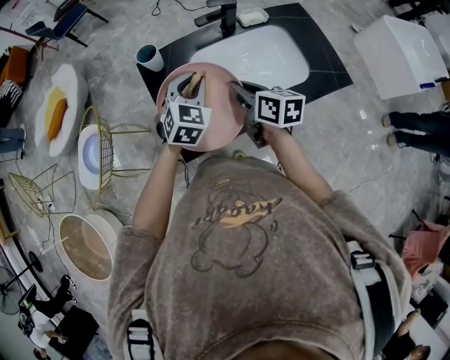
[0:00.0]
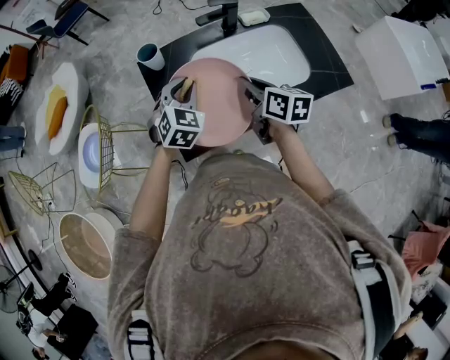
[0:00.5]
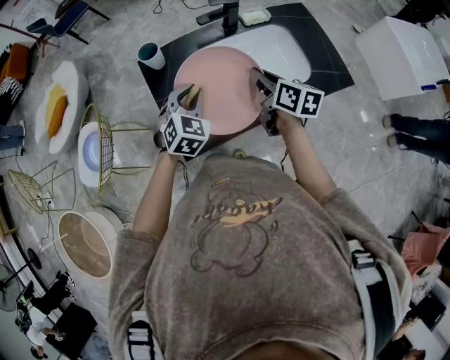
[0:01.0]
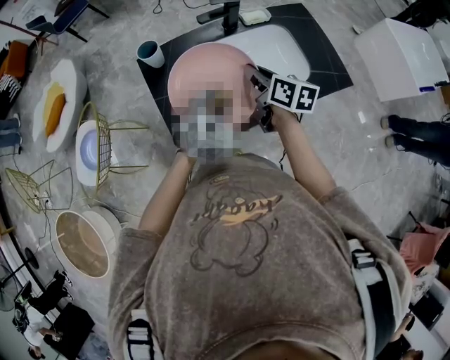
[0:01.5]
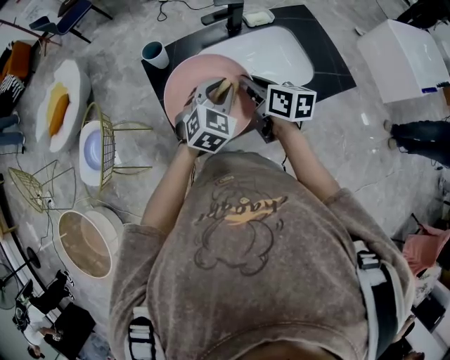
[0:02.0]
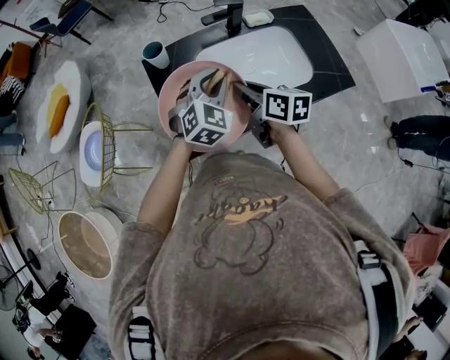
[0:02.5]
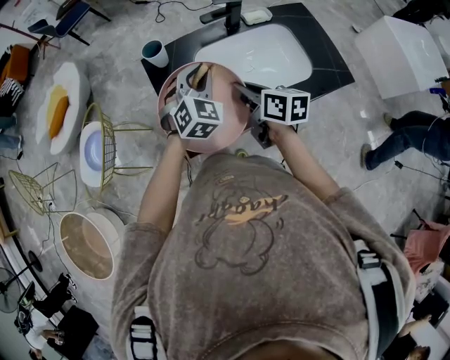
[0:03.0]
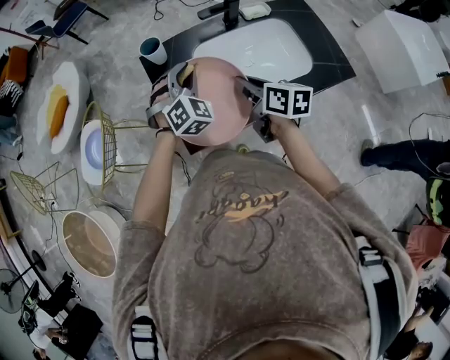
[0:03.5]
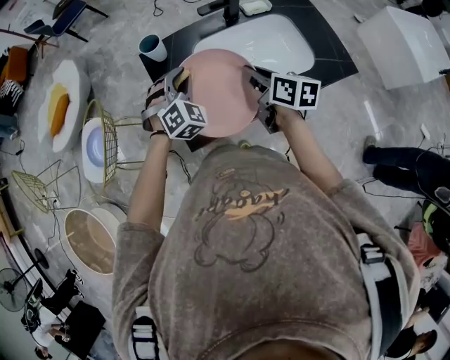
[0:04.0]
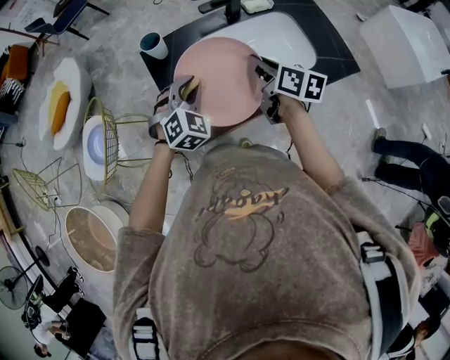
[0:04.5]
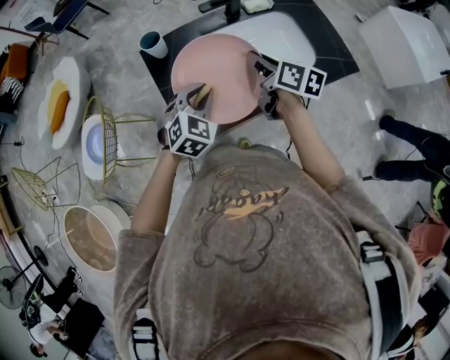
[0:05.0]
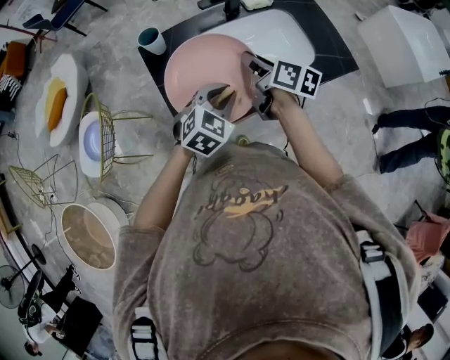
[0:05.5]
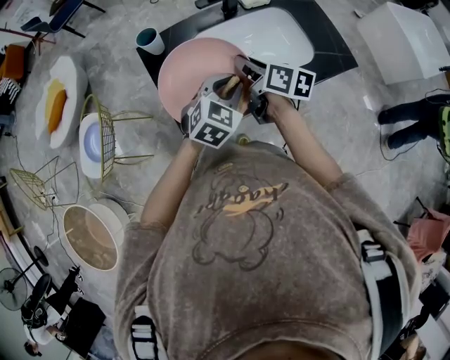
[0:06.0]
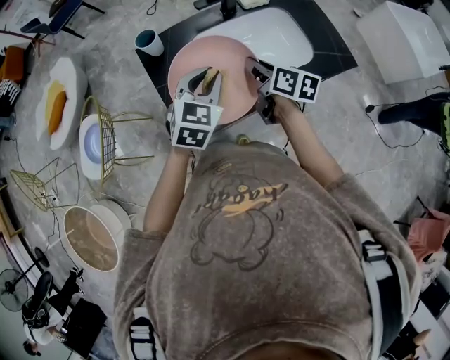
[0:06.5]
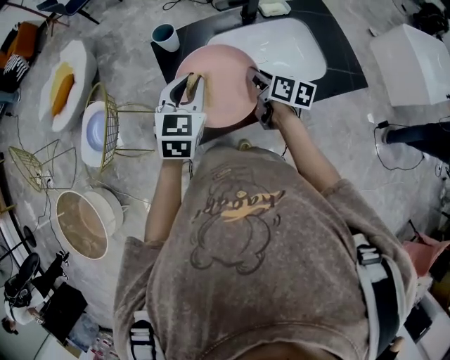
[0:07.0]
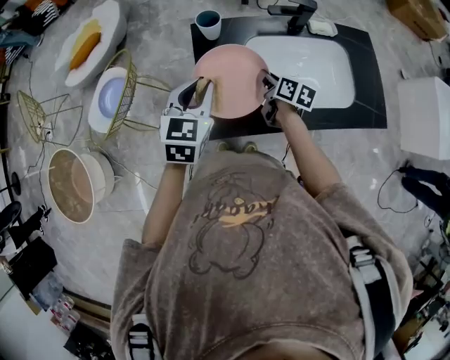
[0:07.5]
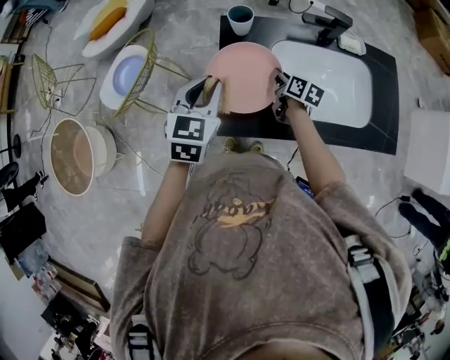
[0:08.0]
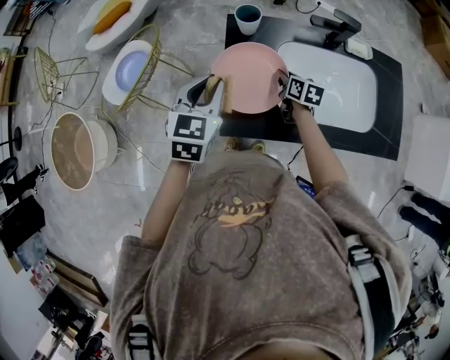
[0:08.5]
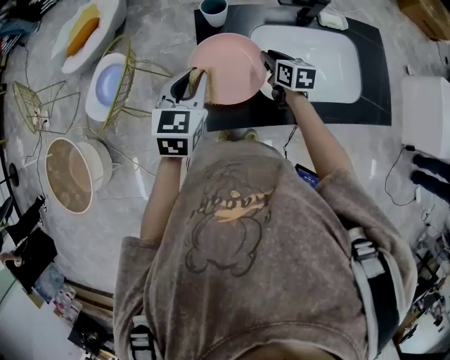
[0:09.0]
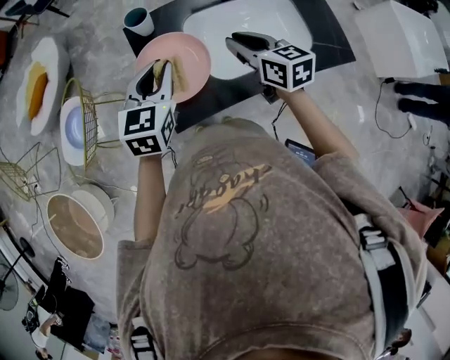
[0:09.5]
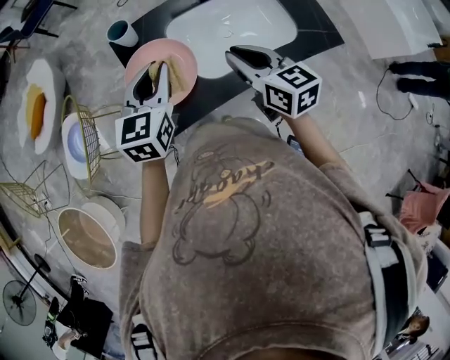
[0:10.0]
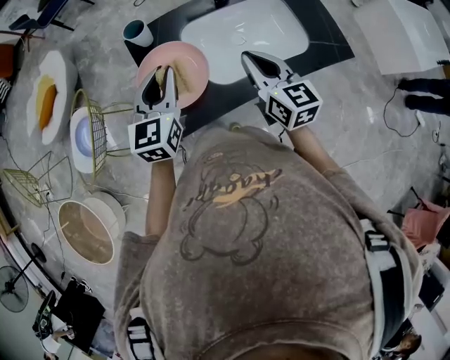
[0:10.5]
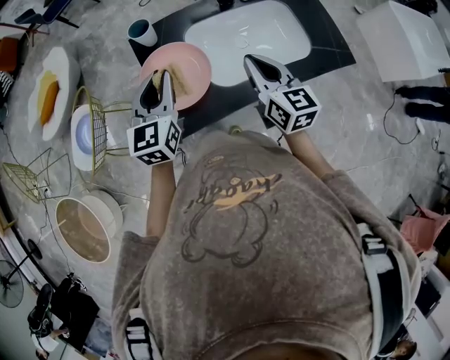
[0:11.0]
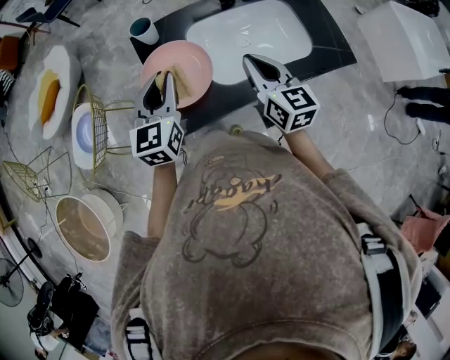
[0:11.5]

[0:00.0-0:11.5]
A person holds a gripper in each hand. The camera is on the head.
0:00.0 to 0:02.0: The left gripper goes about 5 cm to the right.
0:02.0 to 0:04.0: The left gripper goes roughly 10 cm to the left and forward, and changes its angle by some 30 degrees.
0:04.0 to 0:06.0: The left gripper is displaced to the right and backward by approximately 15 cm, and turns by approximately 40 degrees.
0:06.0 to 0:07.5: The left gripper is displaced to the left by approximately 20 cm, and changes its angle by about 40 degrees, while the right gripper heads downward, forward and to the left, covering about 15 cm.
0:07.5 to 0:09.5: The right gripper moves upward, about 15 cm, and rotates some 30 degrees.
0:09.5 to 0:11.5: The right gripper goes approximately 5 cm backward.

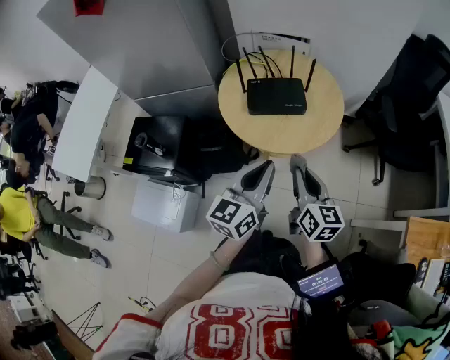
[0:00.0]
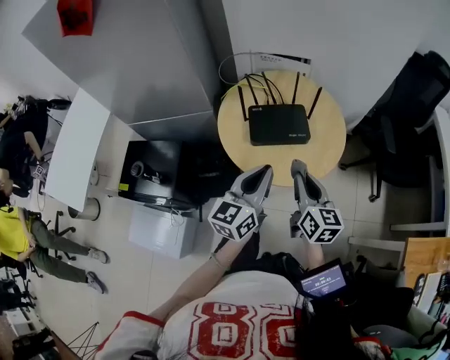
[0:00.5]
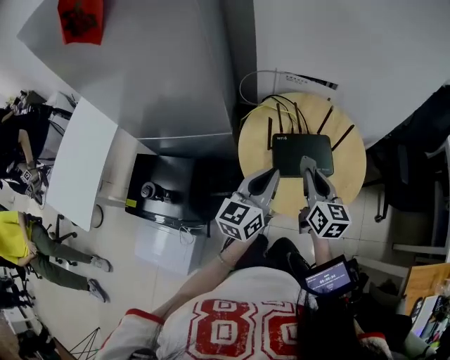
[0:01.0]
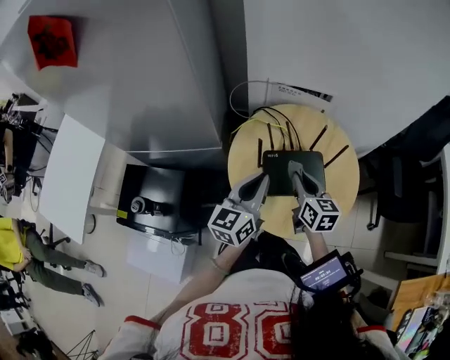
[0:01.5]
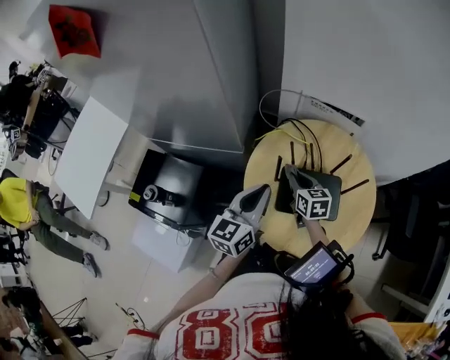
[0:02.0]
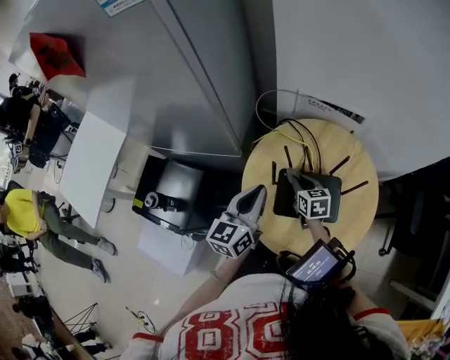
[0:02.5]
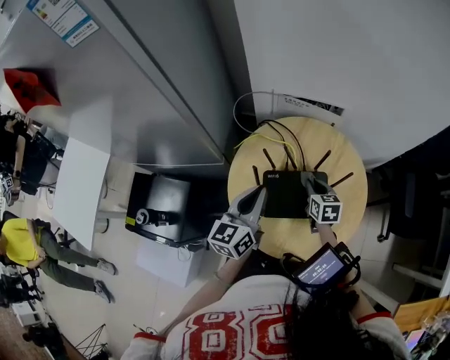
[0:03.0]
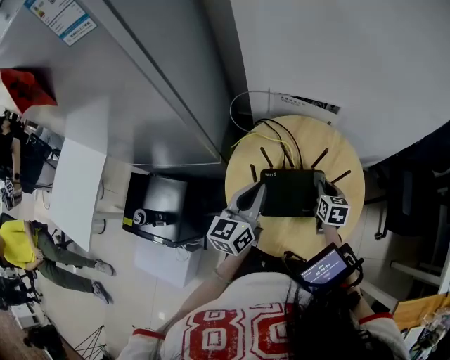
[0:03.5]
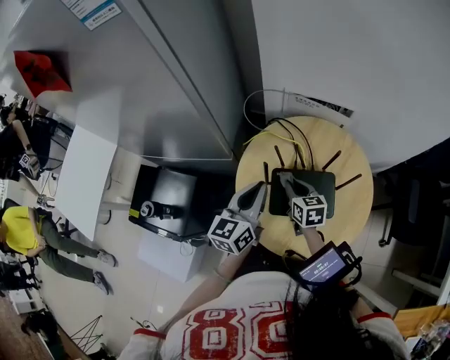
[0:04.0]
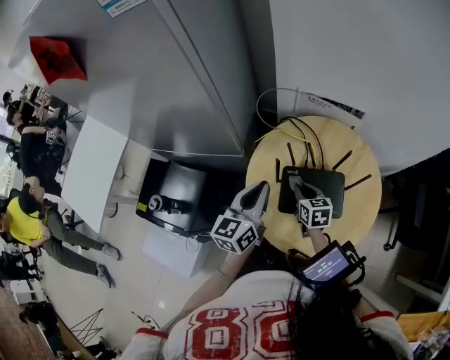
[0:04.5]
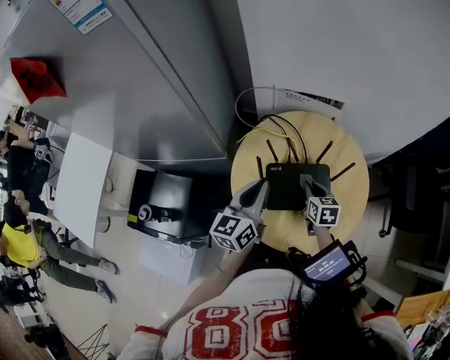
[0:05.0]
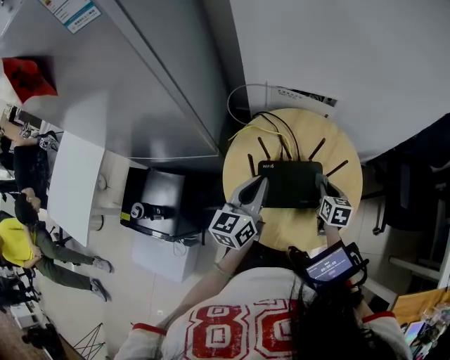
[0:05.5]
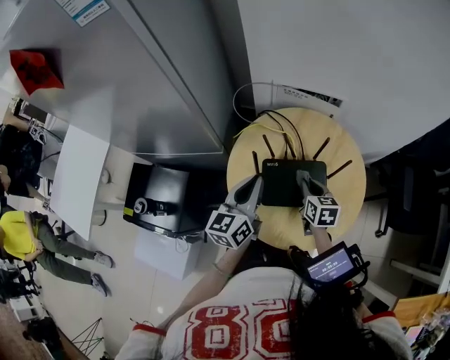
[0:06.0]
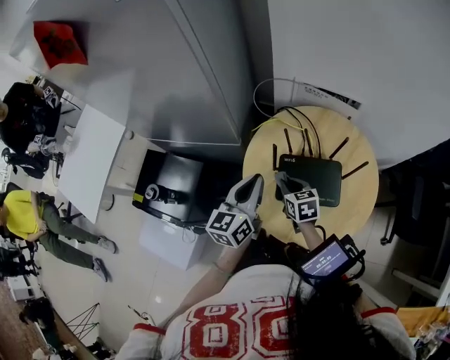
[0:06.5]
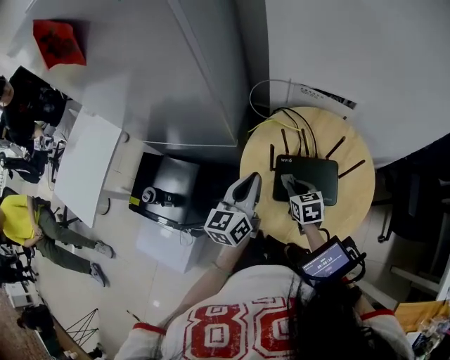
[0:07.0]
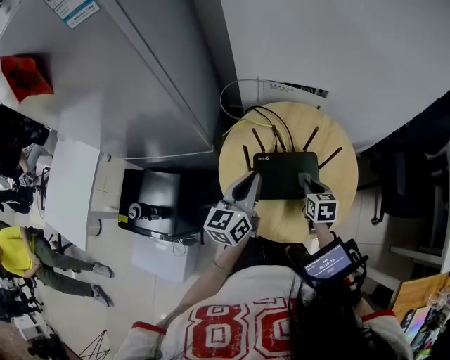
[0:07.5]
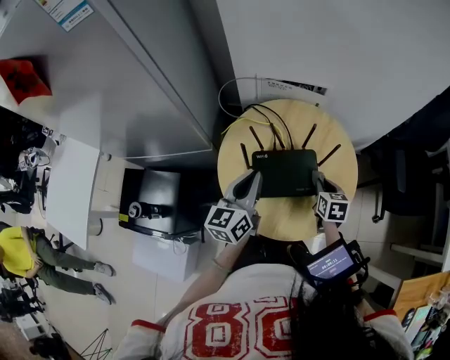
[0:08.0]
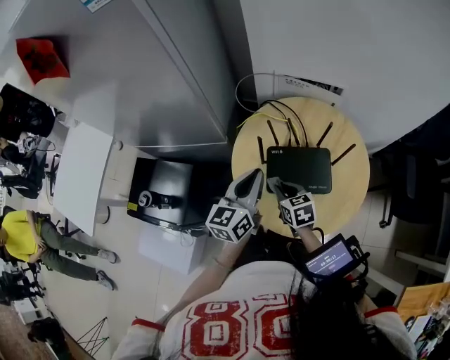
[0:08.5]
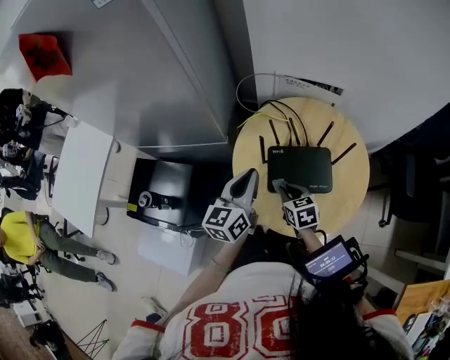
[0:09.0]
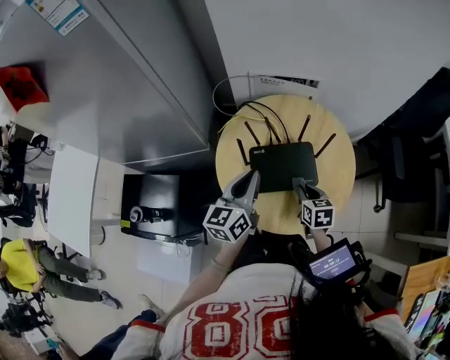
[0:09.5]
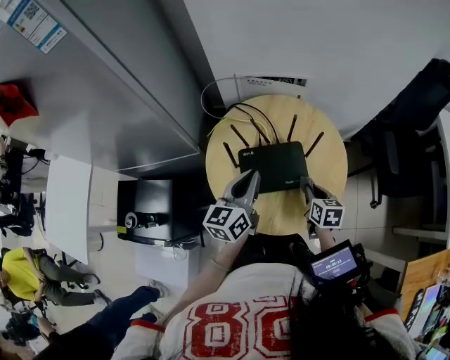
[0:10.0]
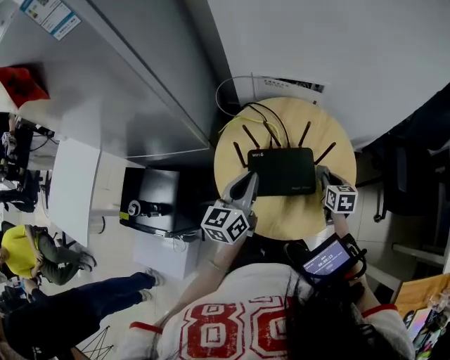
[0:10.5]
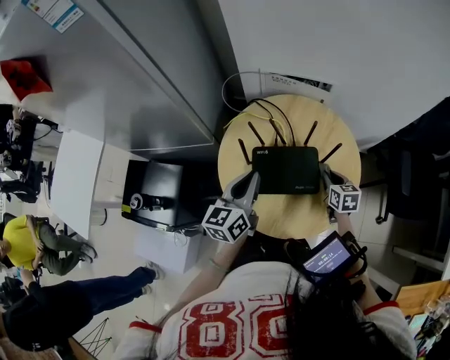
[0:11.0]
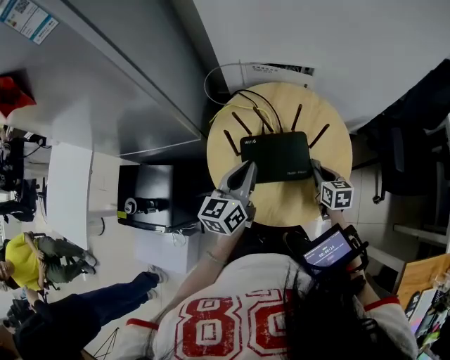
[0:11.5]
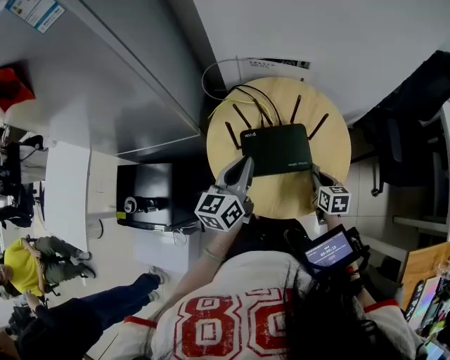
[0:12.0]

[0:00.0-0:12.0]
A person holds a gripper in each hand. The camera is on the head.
0:00.0 to 0:02.0: The two grippers go about 35 cm forward and to the left. The right gripper rotates some 30 degrees.
0:02.0 to 0:04.0: The right gripper moves about 20 cm to the right and comes back.
0:04.0 to 0:06.0: The right gripper goes approximately 10 cm to the right.
0:06.0 to 0:08.0: The right gripper moves to the right, roughly 10 cm.
0:08.0 to 0:10.0: The right gripper shifts approximately 5 cm backward, and reaches some 20 cm to the left, then returns.
0:10.0 to 0:12.0: The right gripper travels forward and back again, roughly 10 cm each way.

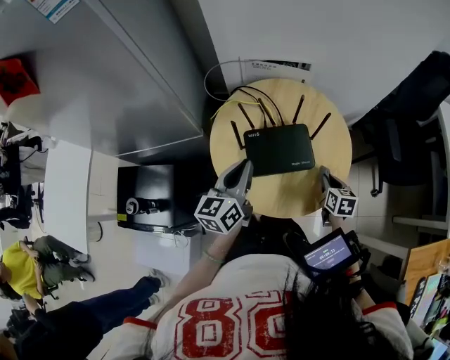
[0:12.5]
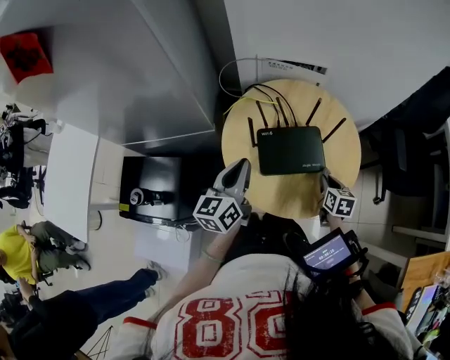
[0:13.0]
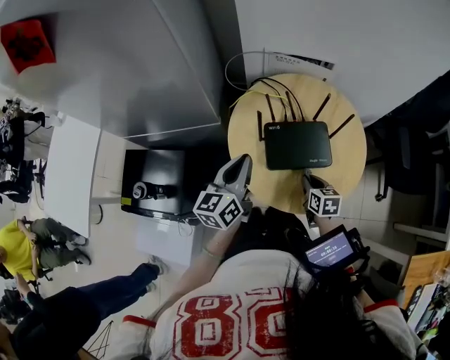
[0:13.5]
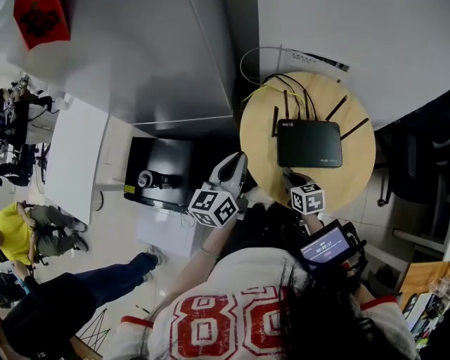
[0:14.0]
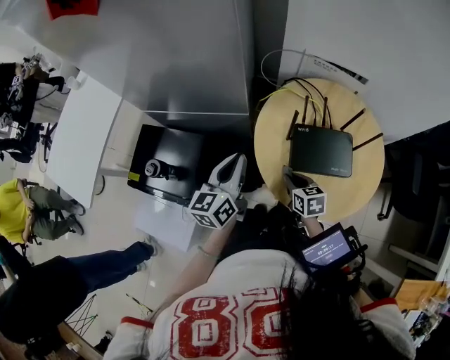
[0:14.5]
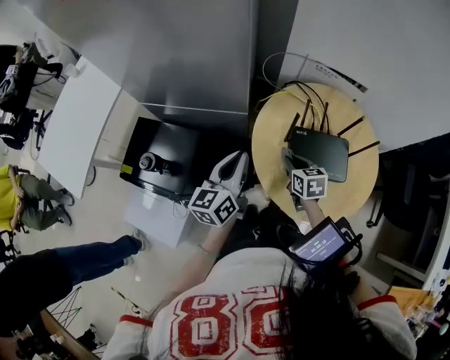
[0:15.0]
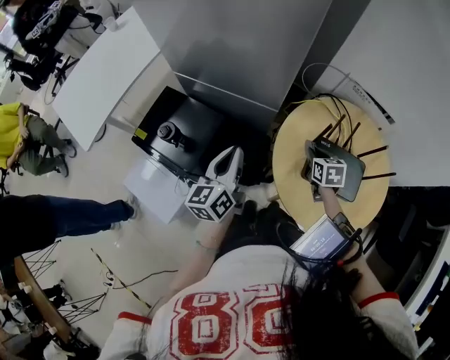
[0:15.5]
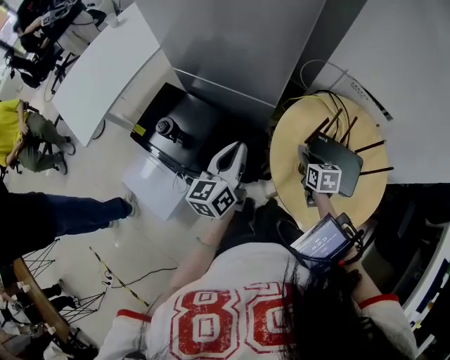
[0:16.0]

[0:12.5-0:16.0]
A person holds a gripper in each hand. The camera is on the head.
0:12.5 to 0:14.5: The left gripper changes place by about 15 cm. The right gripper shifts by some 30 cm, and rotates some 30 degrees.
0:14.5 to 0:16.0: The left gripper goes roughly 5 cm to the left; the right gripper heads forward, covering some 10 cm.
